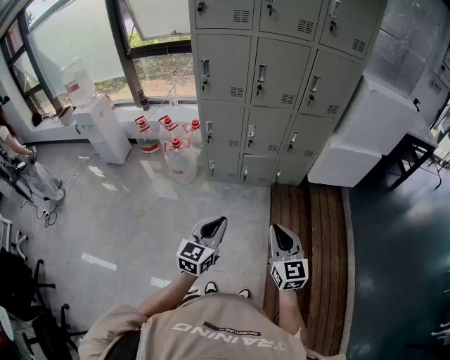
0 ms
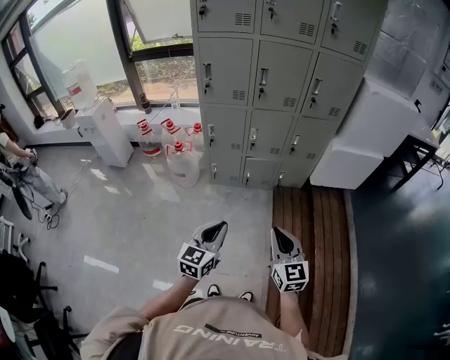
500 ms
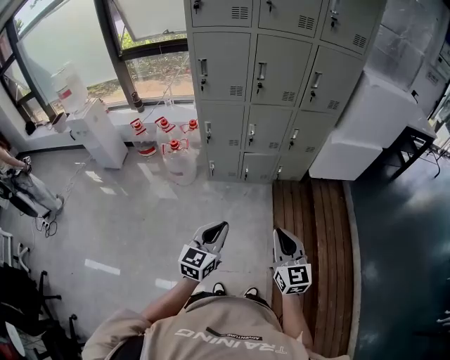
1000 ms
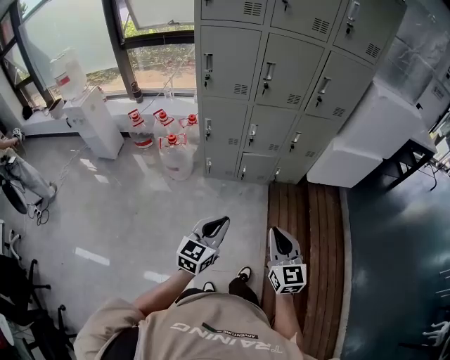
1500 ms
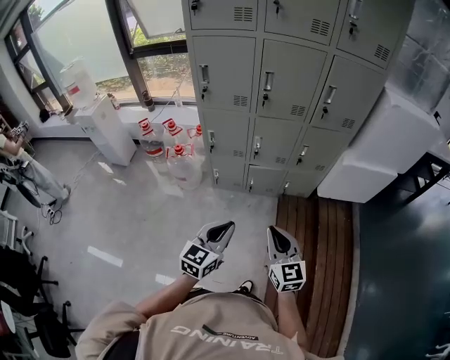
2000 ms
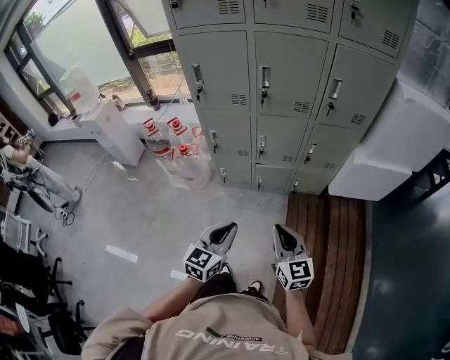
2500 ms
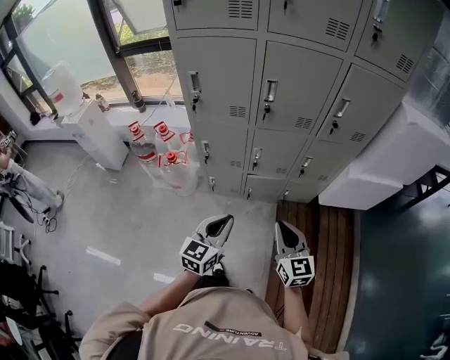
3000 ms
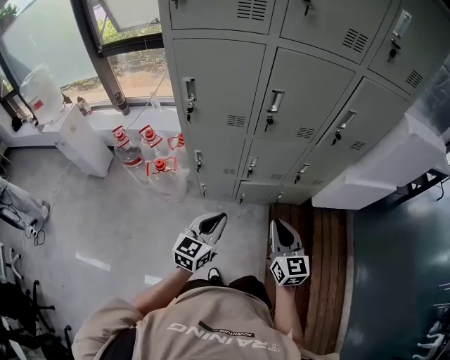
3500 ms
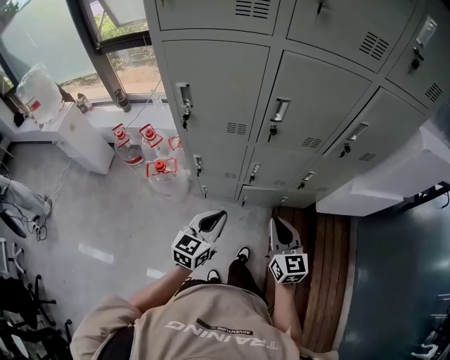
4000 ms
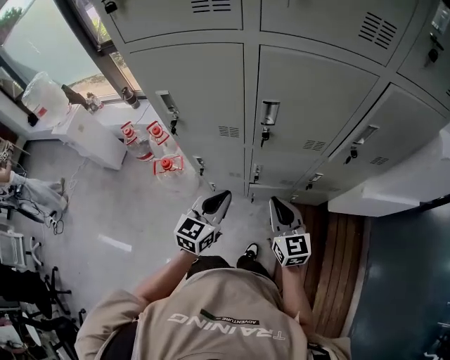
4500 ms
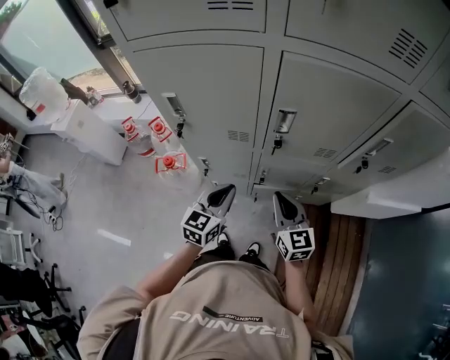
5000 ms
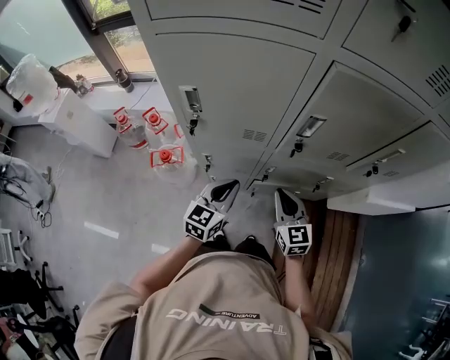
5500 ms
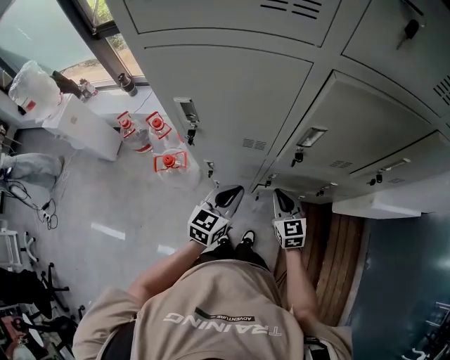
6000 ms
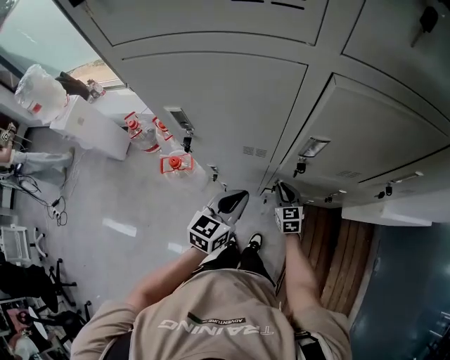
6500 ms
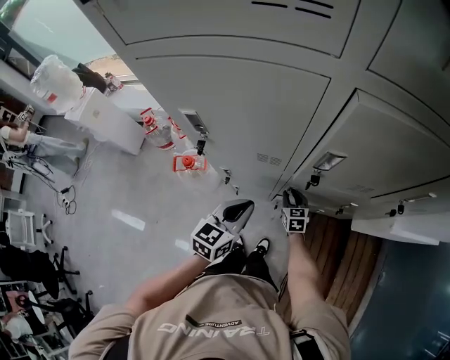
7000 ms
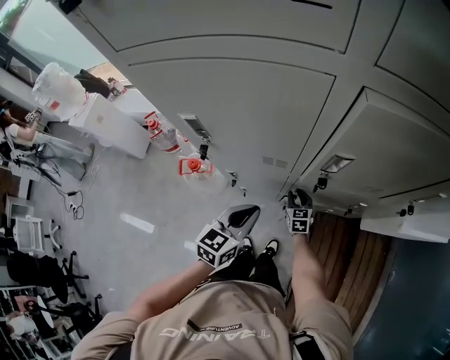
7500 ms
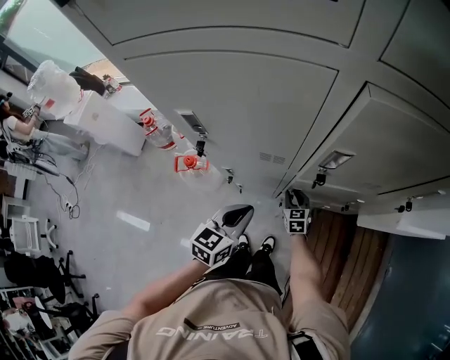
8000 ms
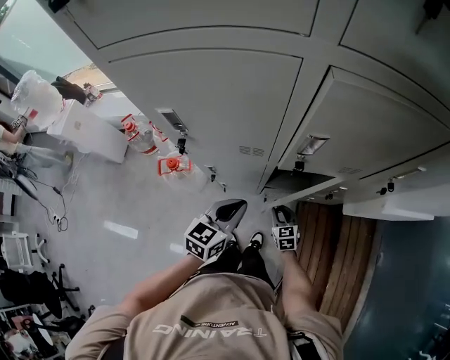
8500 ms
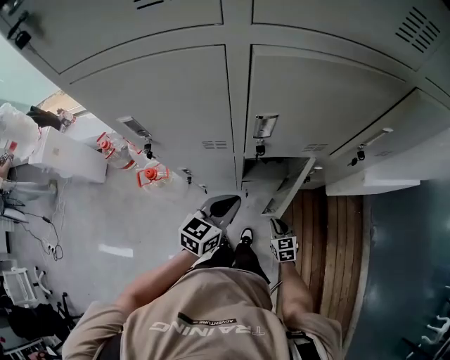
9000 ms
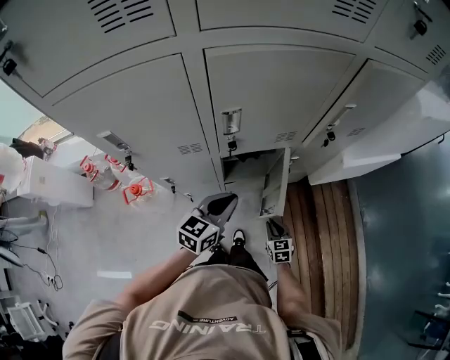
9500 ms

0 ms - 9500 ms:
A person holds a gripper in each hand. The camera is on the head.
0 ms - 2000 ms: Both grippers travel together forward, about 10 cm.
2000 ms - 4000 ms: Both grippers travel together forward, roughly 30 cm.
4000 ms - 5500 ms: The two grippers go about 15 cm forward.
5500 ms - 7500 ms: The right gripper heads downward and forward, covering roughly 30 cm.
7500 ms - 9500 ms: The right gripper is displaced backward and to the right by approximately 30 cm. The left gripper shifts some 15 cm to the right, and rotates approximately 20 degrees.

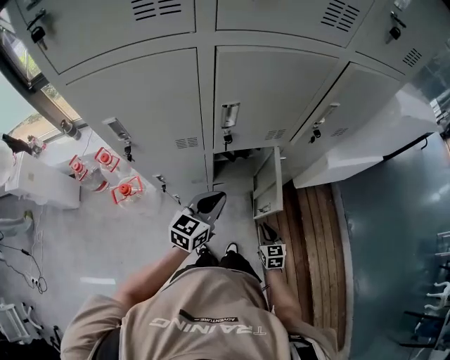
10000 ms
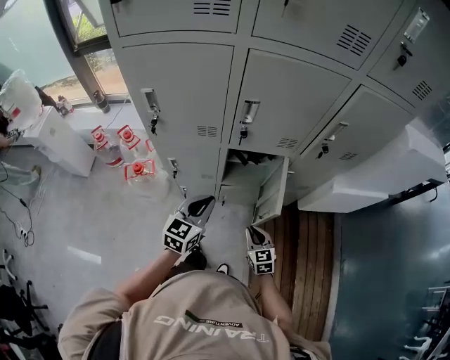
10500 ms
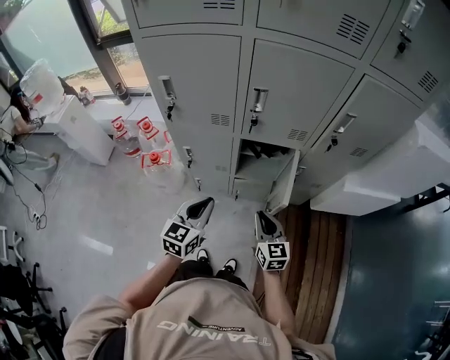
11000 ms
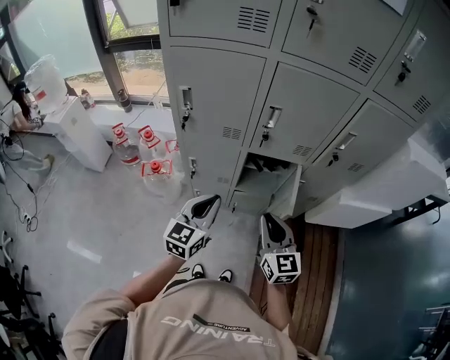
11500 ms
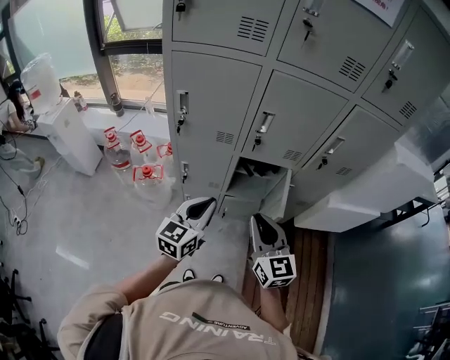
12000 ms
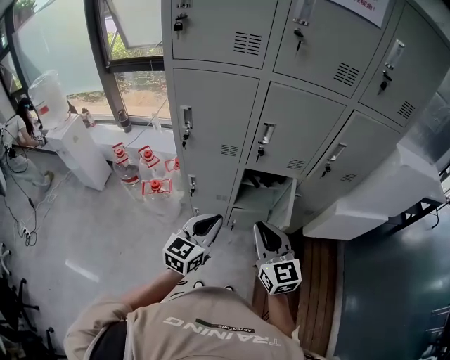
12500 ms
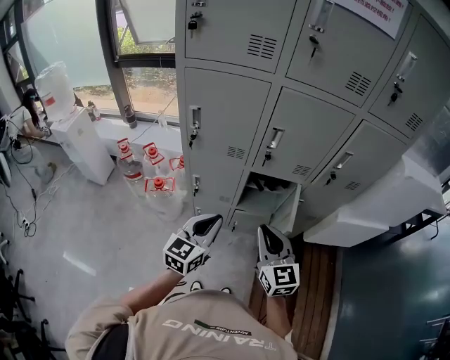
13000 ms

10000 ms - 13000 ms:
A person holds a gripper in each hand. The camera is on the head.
10000 ms - 11500 ms: The left gripper heads backward, upward and to the left, covering roughly 15 cm, and rotates approximately 30 degrees. The right gripper heads upward, covering roughly 30 cm, and rotates roughly 30 degrees.
11500 ms - 13000 ms: The right gripper ends up some 5 cm from where it was.

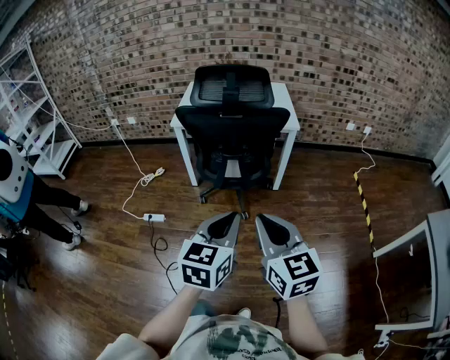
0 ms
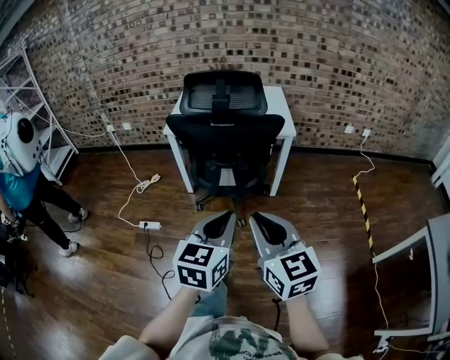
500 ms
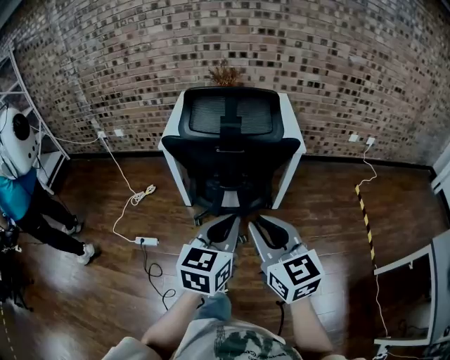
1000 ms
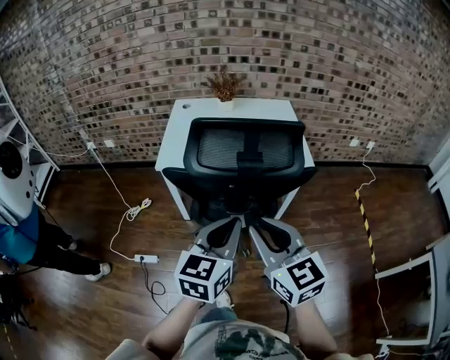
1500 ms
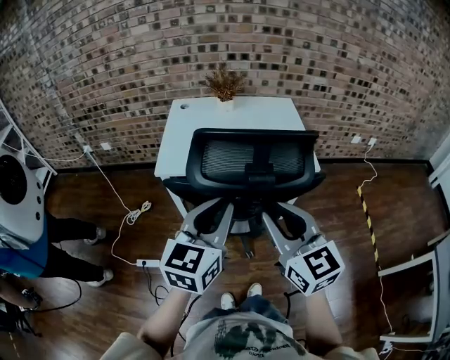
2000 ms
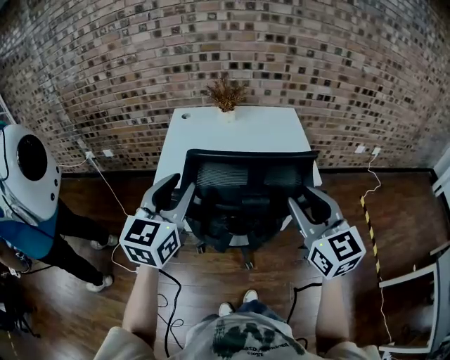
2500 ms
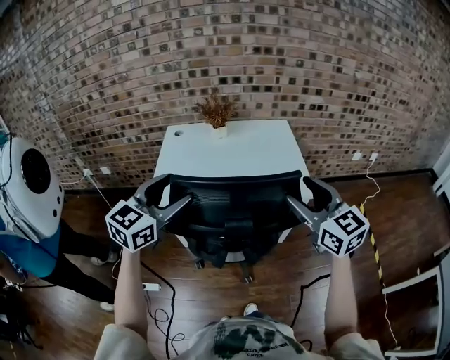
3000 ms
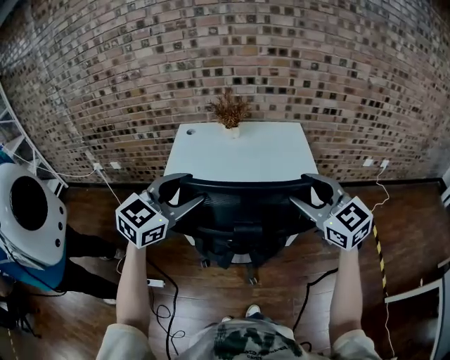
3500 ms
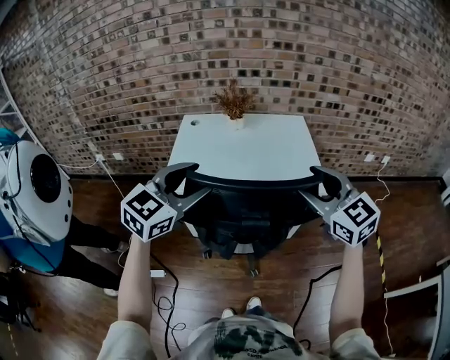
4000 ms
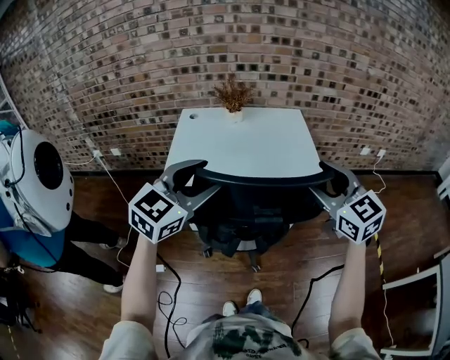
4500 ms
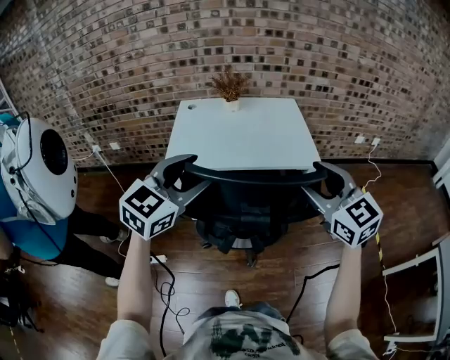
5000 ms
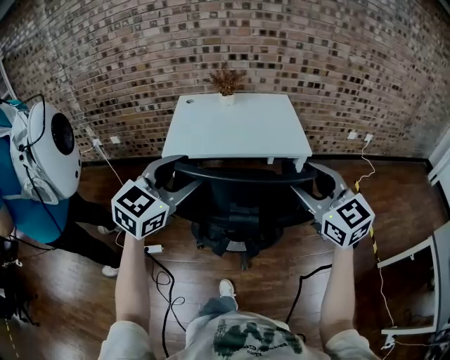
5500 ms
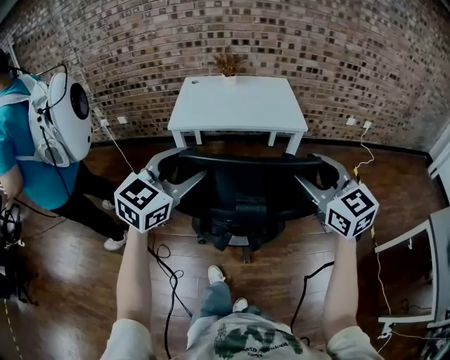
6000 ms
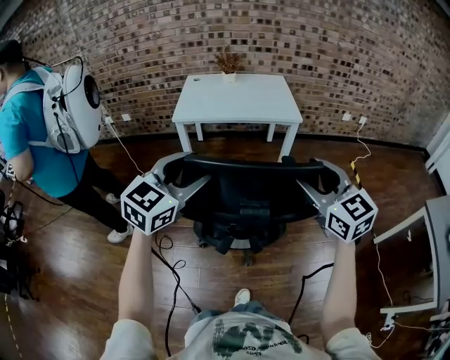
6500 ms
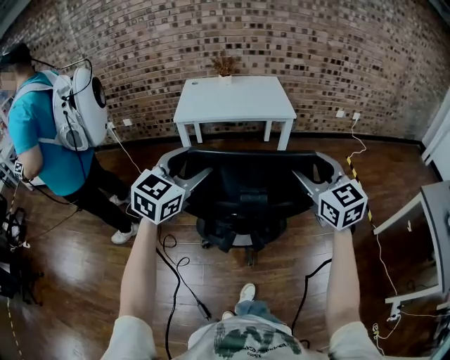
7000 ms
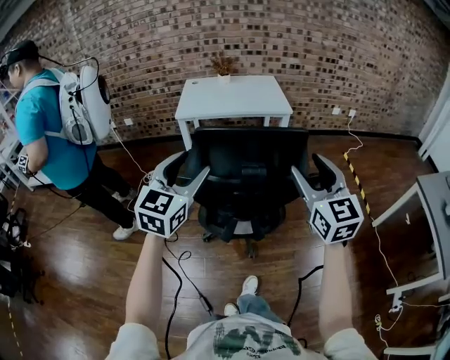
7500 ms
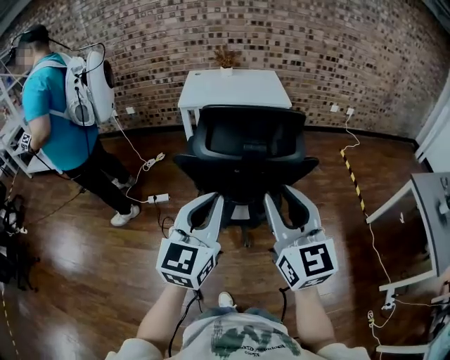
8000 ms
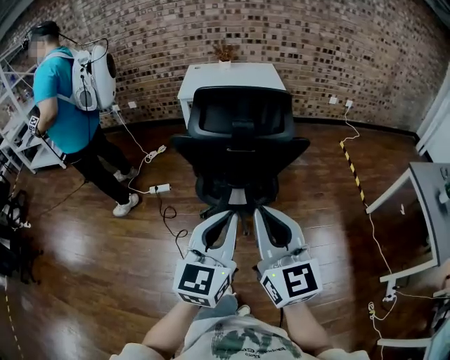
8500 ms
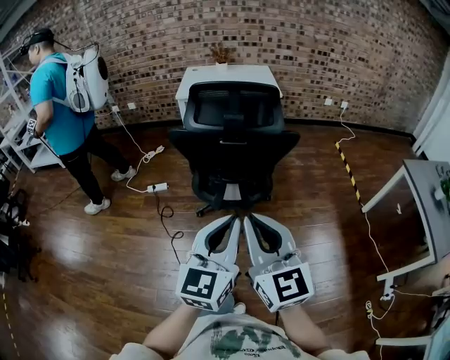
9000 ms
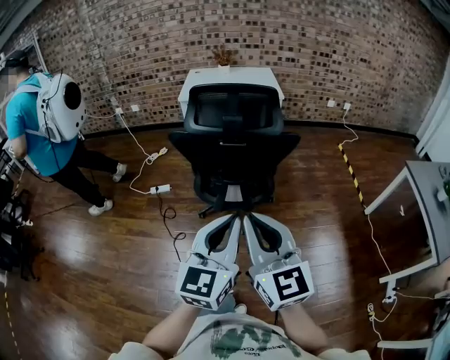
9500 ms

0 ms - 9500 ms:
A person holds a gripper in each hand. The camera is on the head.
0 ms - 2000 ms: Both grippers travel together forward, about 40 cm.
2000 ms - 4000 ms: The right gripper shifts approximately 20 cm forward and to the right, and opens. Meanwhile the left gripper travels forward by some 10 cm, swivels approximately 30 degrees, and opens up.
4000 ms - 5500 ms: The two grippers go roughly 20 cm backward.
5500 ms - 7500 ms: Both grippers travel together backward, about 35 cm.
7500 ms - 9500 ms: The right gripper moves backward, roughly 30 cm, and closes its fingers. The left gripper travels backward and to the right by about 35 cm, and closes its fingers.

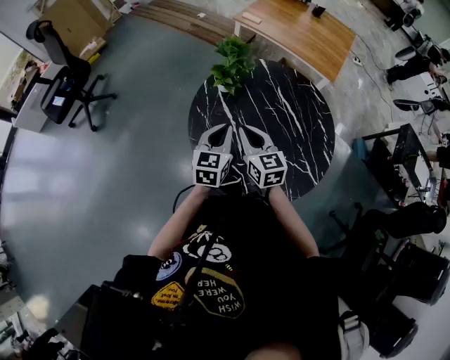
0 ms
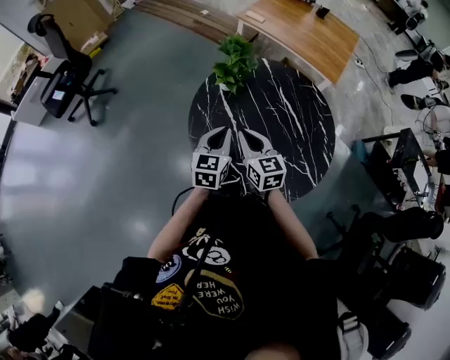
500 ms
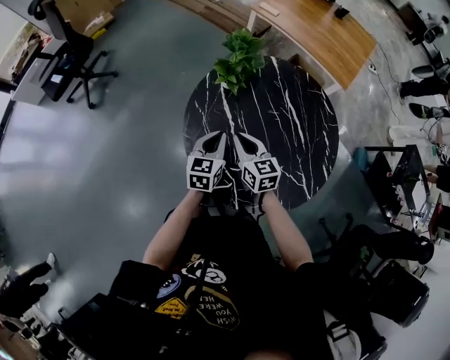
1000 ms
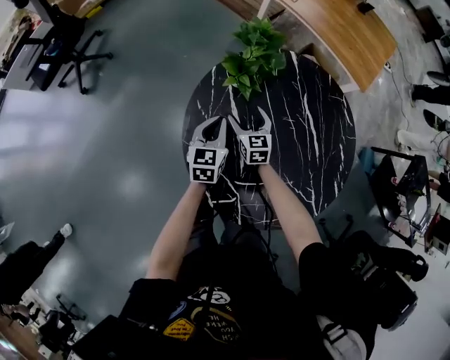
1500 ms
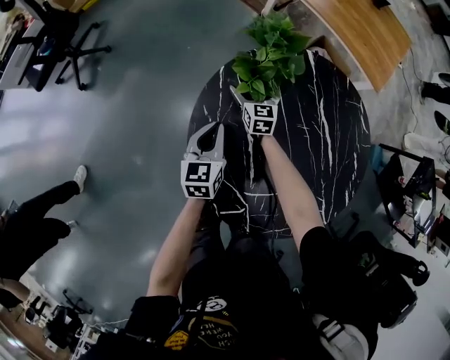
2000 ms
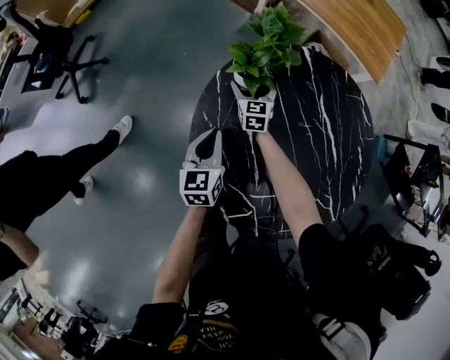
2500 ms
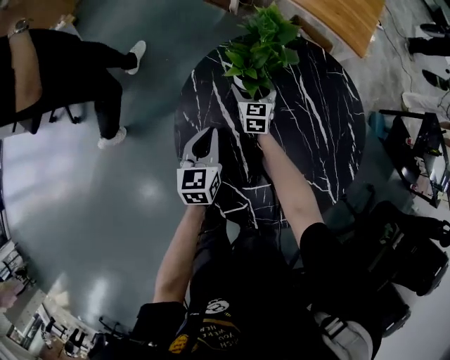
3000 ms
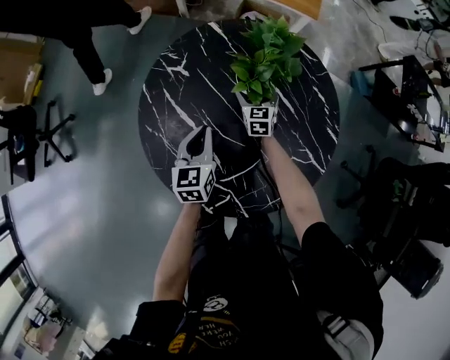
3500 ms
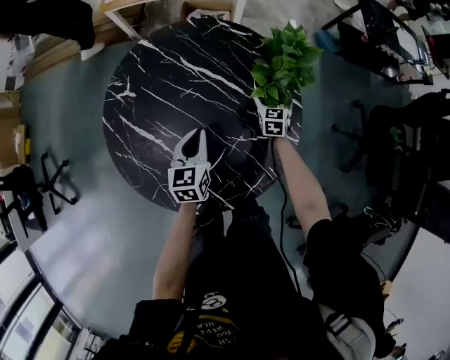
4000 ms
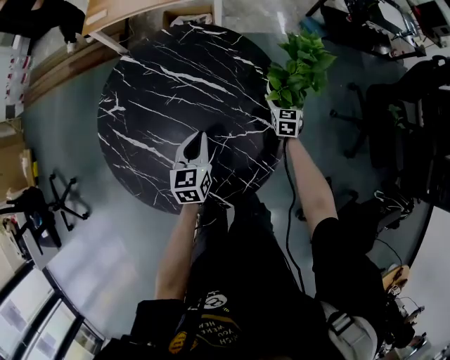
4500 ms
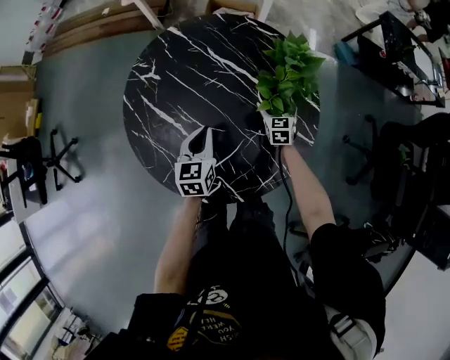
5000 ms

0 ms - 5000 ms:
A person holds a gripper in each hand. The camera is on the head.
0 ms - 2500 ms: The right gripper goes roughly 50 cm forward and downward, and opens up. The left gripper goes roughly 25 cm downward and forward.
2500 ms - 5000 ms: The left gripper changes place by roughly 25 cm, and turns by approximately 30 degrees. Meanwhile the right gripper shifts by about 50 cm, and swivels roughly 30 degrees.
